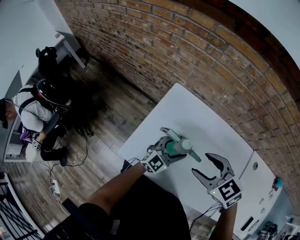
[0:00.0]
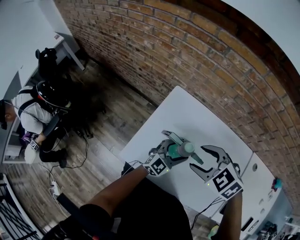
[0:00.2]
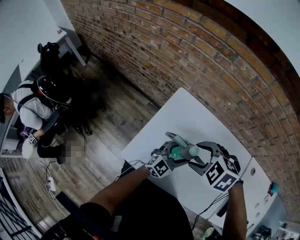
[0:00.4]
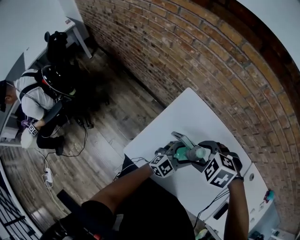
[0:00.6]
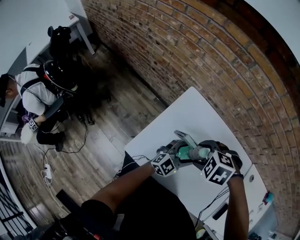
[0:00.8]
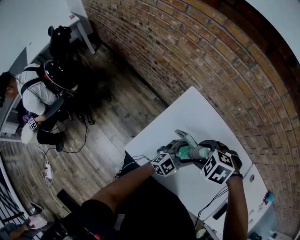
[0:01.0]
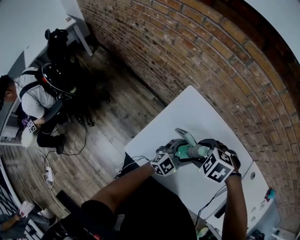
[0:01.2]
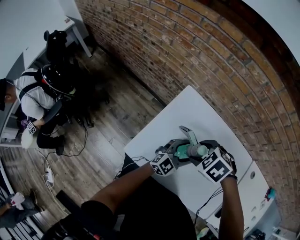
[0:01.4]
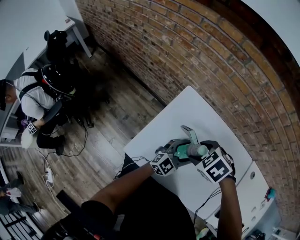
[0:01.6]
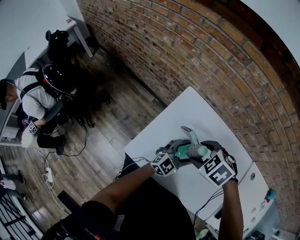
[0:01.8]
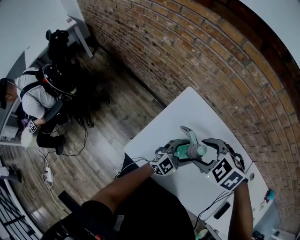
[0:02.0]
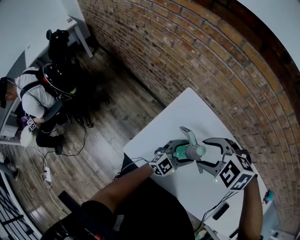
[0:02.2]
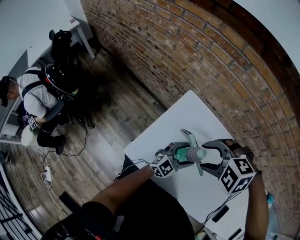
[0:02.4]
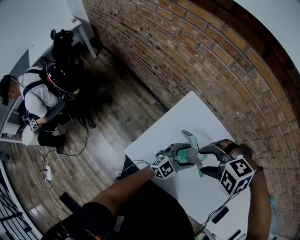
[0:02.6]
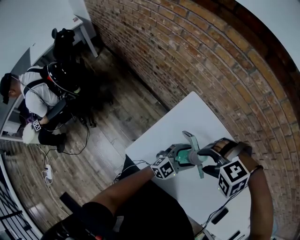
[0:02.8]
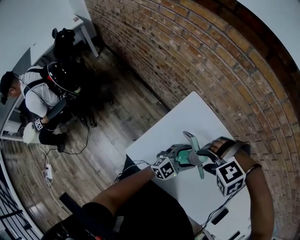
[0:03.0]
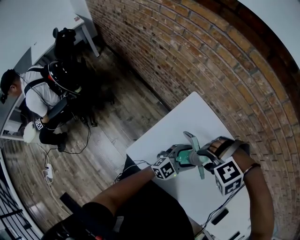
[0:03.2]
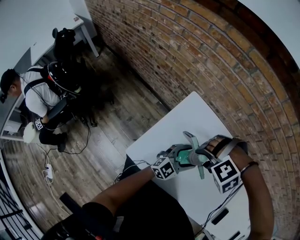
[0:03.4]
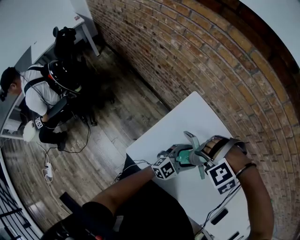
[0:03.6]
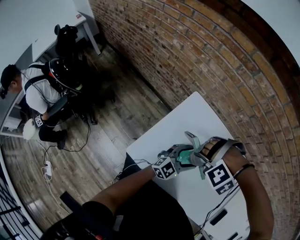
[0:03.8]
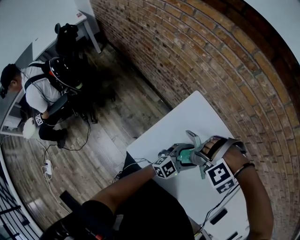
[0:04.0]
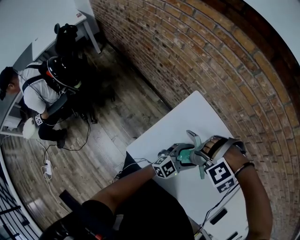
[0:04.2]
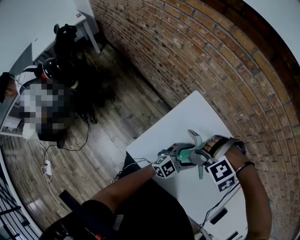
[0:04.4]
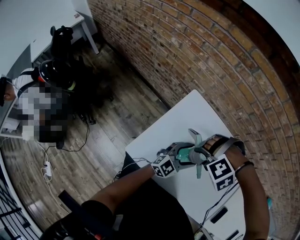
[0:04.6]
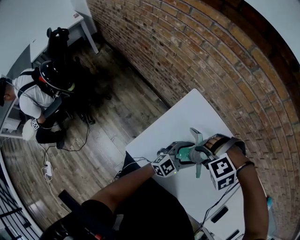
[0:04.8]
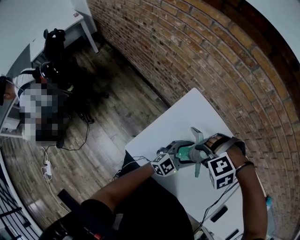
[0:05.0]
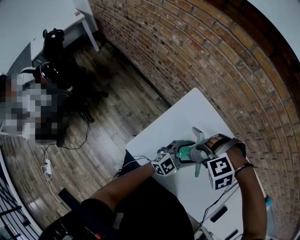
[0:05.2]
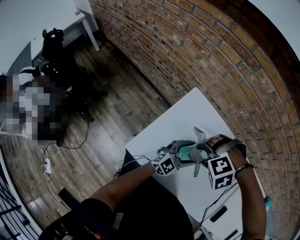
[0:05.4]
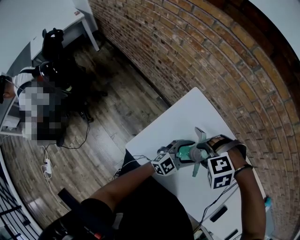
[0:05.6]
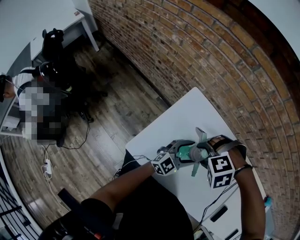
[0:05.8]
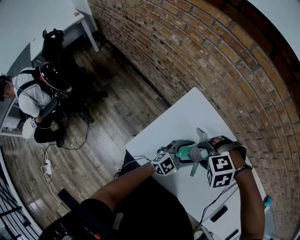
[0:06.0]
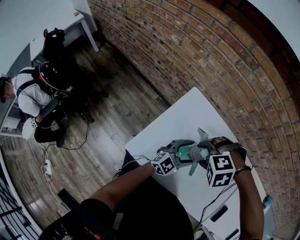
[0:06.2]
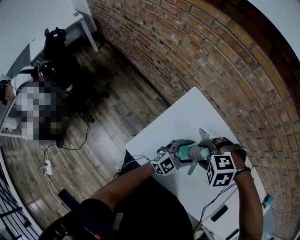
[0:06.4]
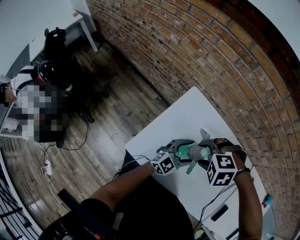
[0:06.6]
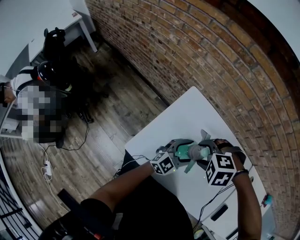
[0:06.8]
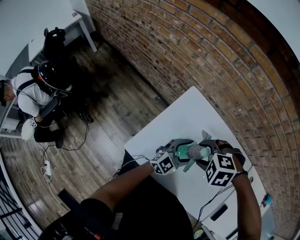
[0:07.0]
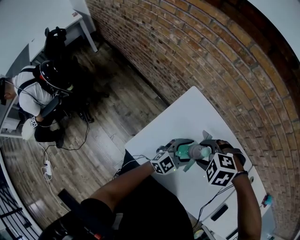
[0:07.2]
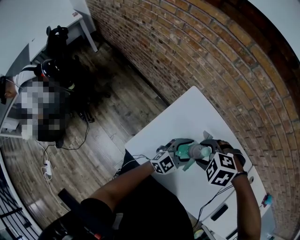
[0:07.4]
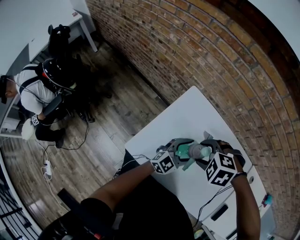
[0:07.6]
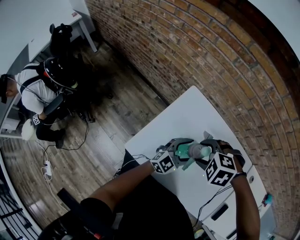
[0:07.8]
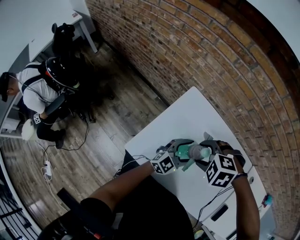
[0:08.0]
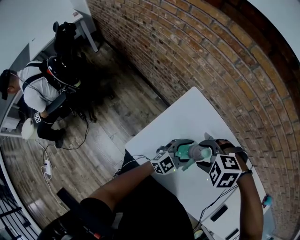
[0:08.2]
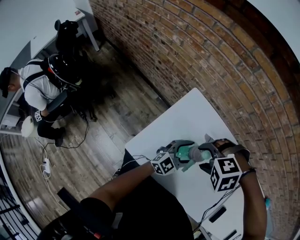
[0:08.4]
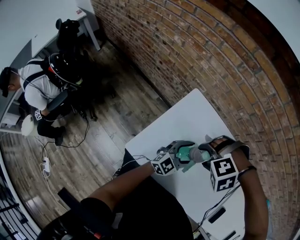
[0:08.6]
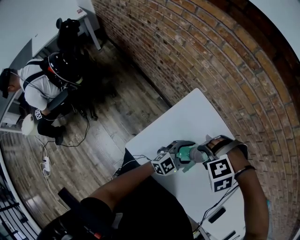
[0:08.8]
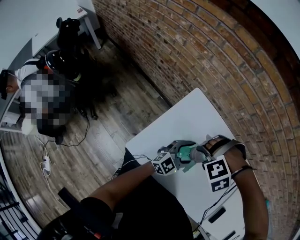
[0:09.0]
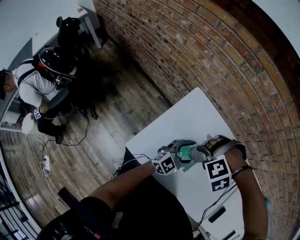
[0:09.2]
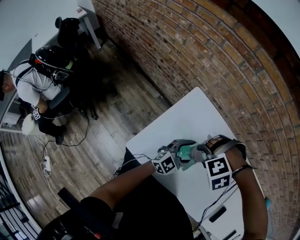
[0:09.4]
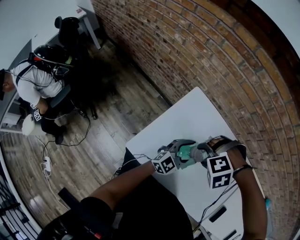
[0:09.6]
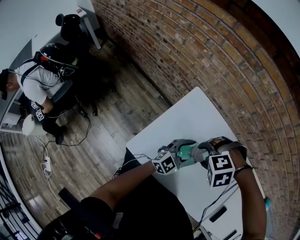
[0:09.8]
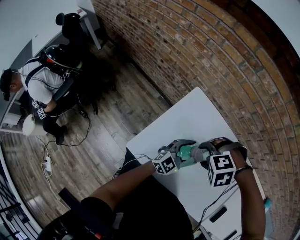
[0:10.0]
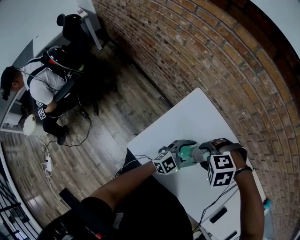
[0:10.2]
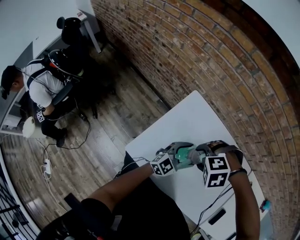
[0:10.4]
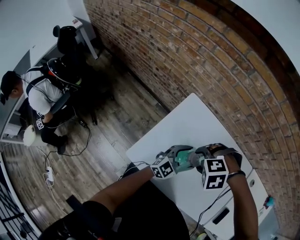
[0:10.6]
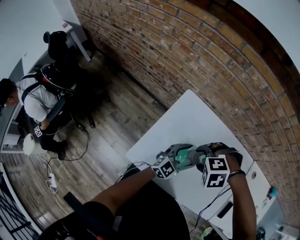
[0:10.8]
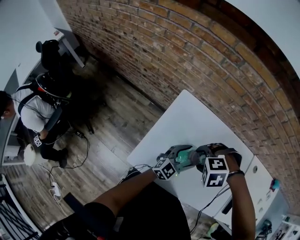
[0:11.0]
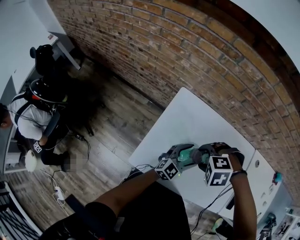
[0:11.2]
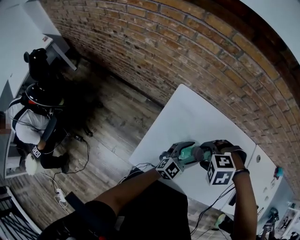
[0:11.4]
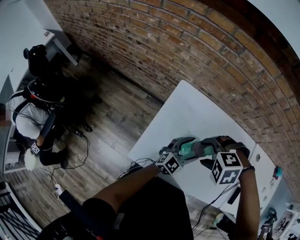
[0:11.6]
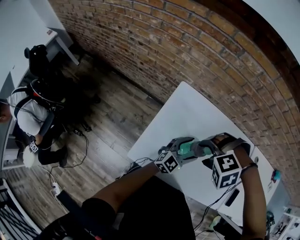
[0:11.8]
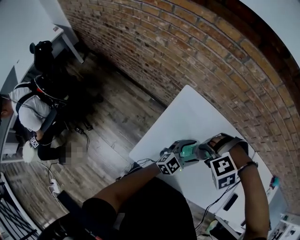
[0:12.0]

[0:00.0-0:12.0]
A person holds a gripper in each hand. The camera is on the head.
0:00.0 to 0:01.6: The right gripper ends up approximately 10 cm from where it was, and points its fingers approximately 30 degrees further downward.
0:01.6 to 0:03.0: The right gripper twists some 70 degrees counterclockwise, seen from behind.
0:03.0 to 0:04.4: The grippers move only a little.
0:04.4 to 0:06.0: The right gripper swivels some 30 degrees.
0:06.0 to 0:07.6: The right gripper rotates about 30 degrees.
0:07.6 to 0:09.0: The right gripper rotates around the line of its fingers by about 40 degrees, counterclockwise from behind.
0:09.0 to 0:10.4: The right gripper swivels about 20 degrees.

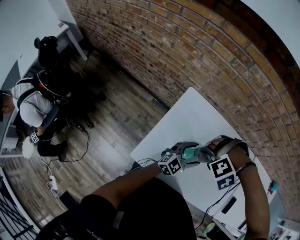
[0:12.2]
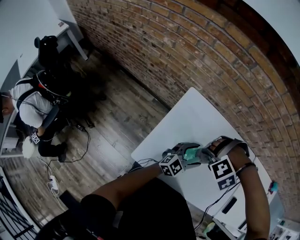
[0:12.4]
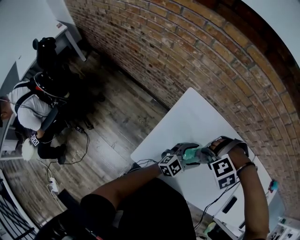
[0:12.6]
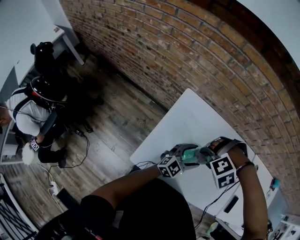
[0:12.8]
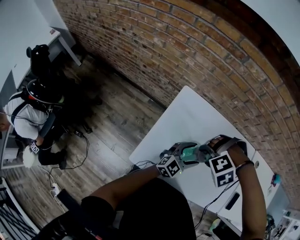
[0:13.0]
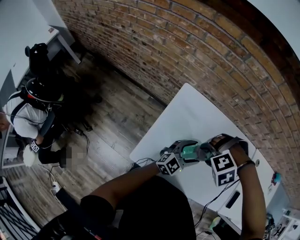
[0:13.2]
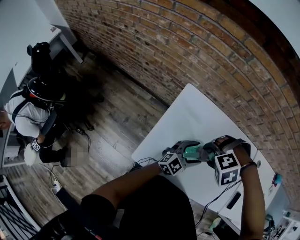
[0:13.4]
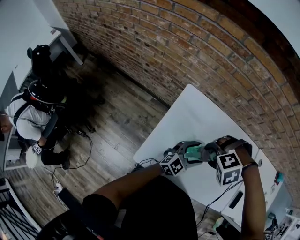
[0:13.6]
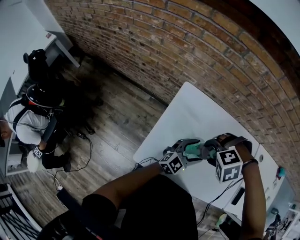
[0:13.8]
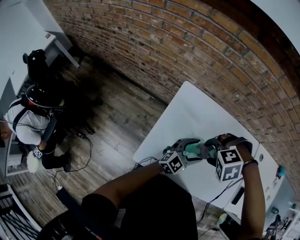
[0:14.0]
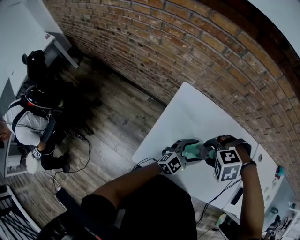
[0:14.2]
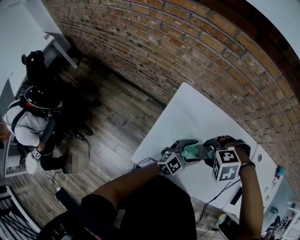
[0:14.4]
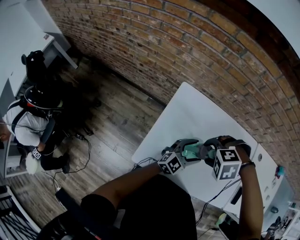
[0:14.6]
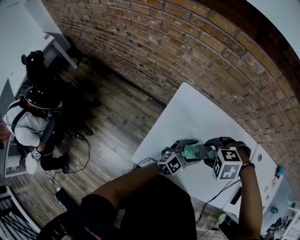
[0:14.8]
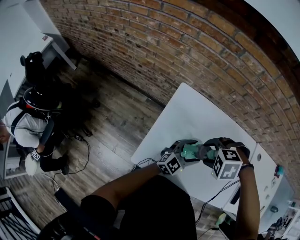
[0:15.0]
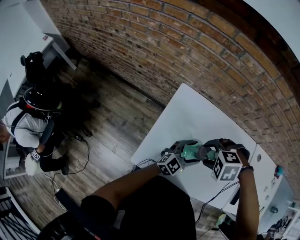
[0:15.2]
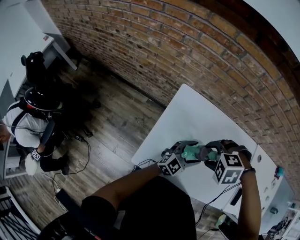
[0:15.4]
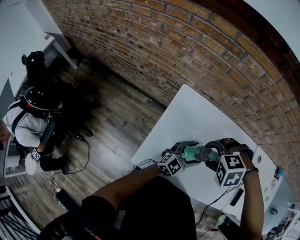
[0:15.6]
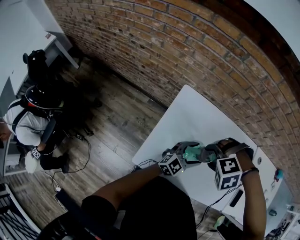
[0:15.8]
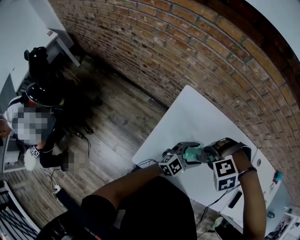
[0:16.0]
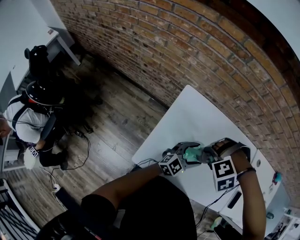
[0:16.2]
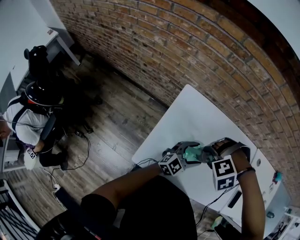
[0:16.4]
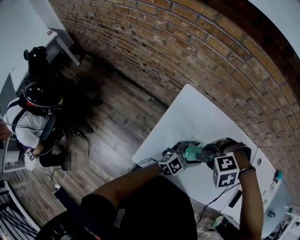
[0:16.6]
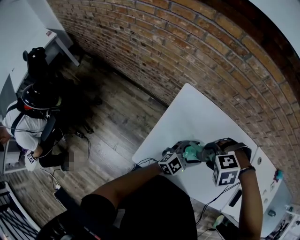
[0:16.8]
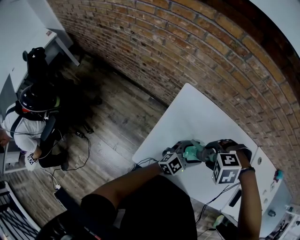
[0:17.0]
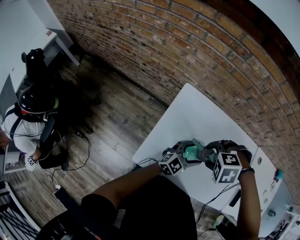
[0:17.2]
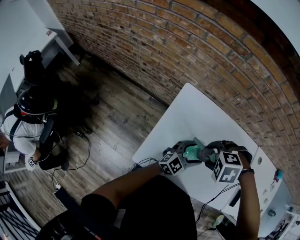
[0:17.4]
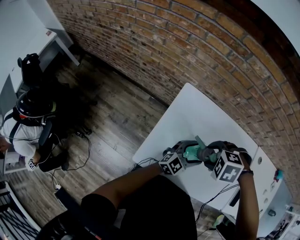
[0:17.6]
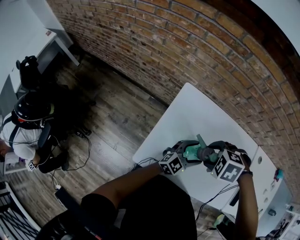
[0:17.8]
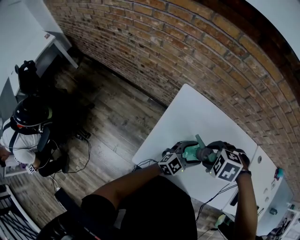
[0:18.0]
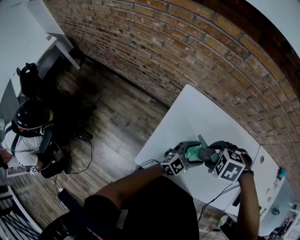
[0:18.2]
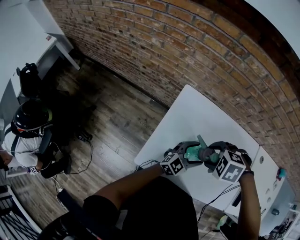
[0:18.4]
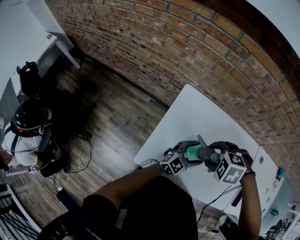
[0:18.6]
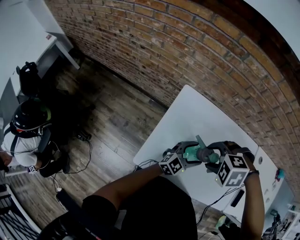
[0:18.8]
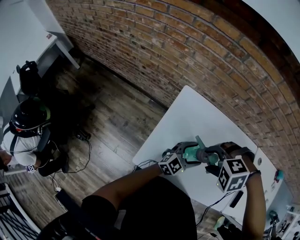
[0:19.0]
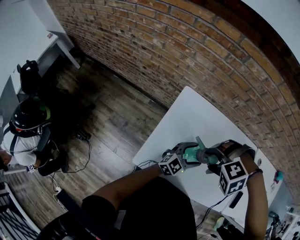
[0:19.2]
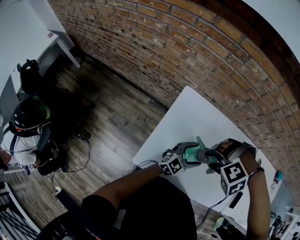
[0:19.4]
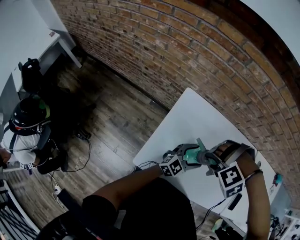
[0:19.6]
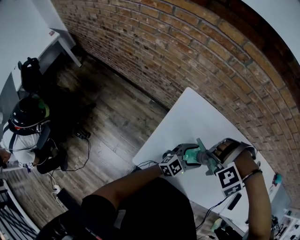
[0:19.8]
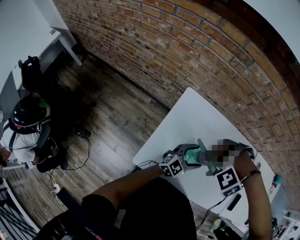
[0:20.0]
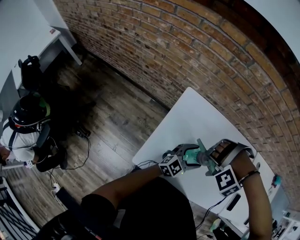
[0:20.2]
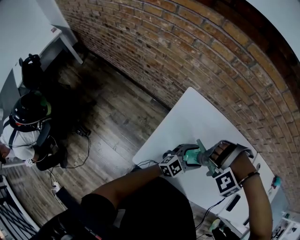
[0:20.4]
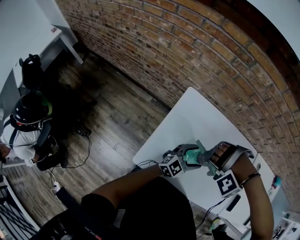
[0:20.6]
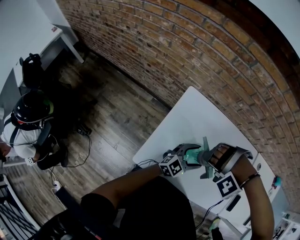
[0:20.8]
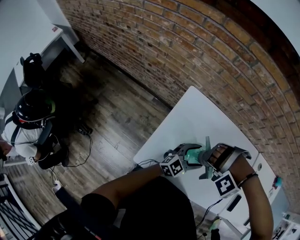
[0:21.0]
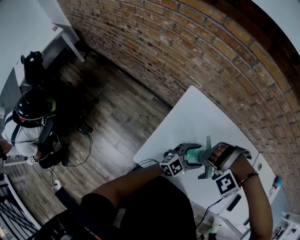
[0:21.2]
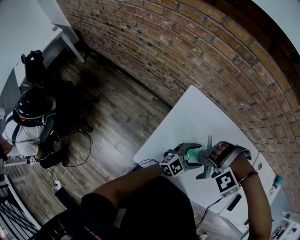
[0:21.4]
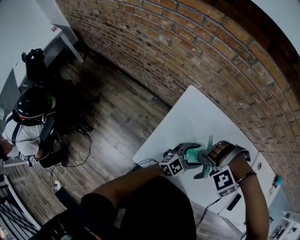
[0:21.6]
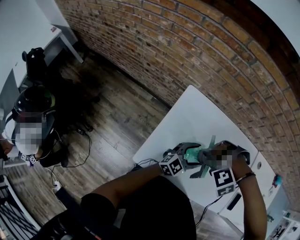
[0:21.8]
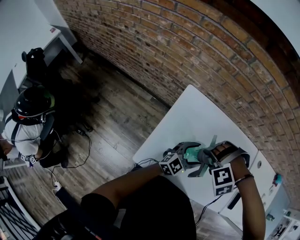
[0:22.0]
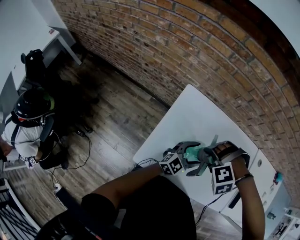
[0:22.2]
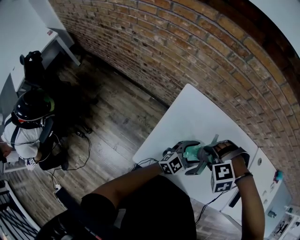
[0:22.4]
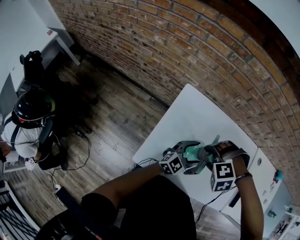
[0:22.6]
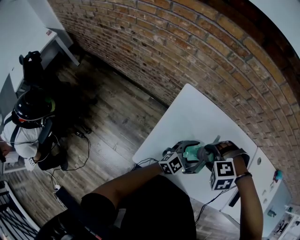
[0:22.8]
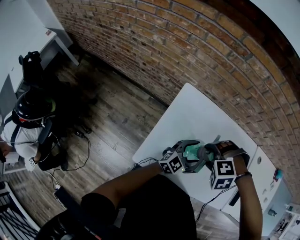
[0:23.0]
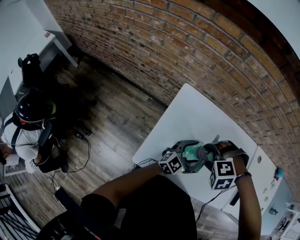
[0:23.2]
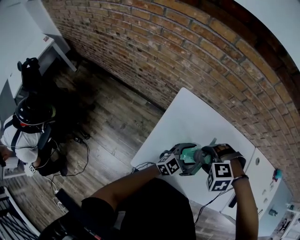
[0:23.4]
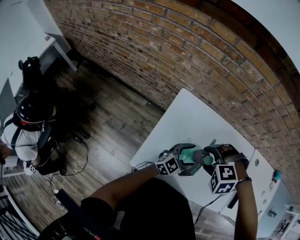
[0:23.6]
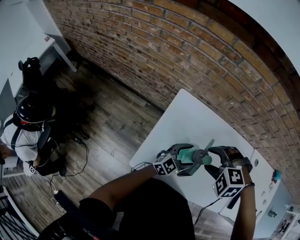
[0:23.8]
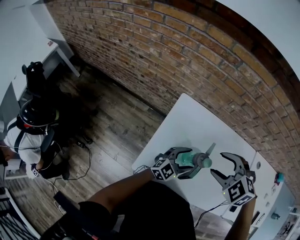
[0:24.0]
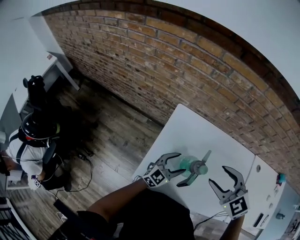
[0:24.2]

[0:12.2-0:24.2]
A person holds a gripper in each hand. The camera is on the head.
0:12.2 to 0:13.8: The right gripper rotates approximately 20 degrees.
0:13.8 to 0:15.2: The grippers stay close to where they were, moving slightly.
0:16.6 to 0:18.2: The right gripper changes its angle by some 30 degrees.
0:18.2 to 0:19.8: The right gripper rotates around the line of its fingers by some 60 degrees, counterclockwise from behind.
0:19.8 to 0:21.2: The grippers stay close to where they were, moving slightly.
0:21.2 to 0:22.6: The right gripper swivels roughly 40 degrees.
0:22.6 to 0:24.2: The left gripper ends up approximately 5 cm from where it was, while the right gripper heads upward, covering some 15 cm, and tilts its fingers roughly 50 degrees upward.
